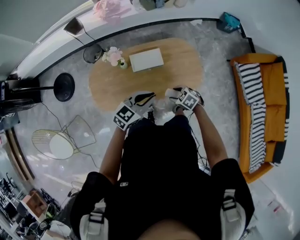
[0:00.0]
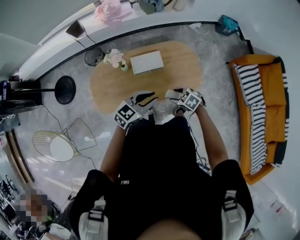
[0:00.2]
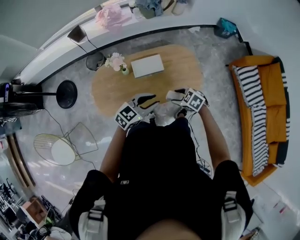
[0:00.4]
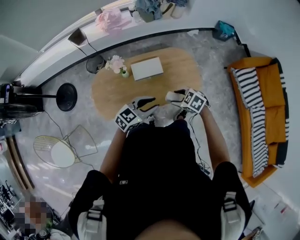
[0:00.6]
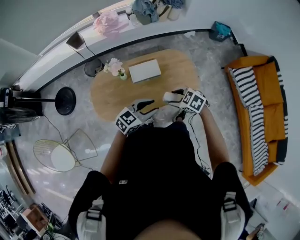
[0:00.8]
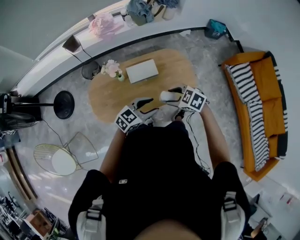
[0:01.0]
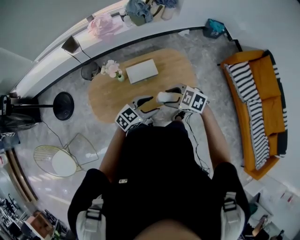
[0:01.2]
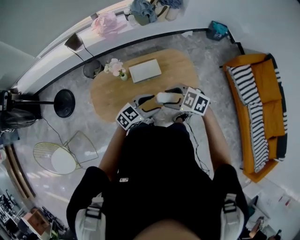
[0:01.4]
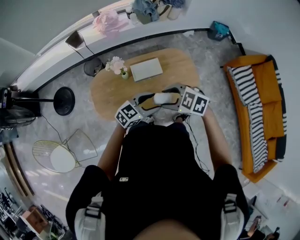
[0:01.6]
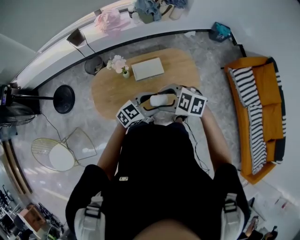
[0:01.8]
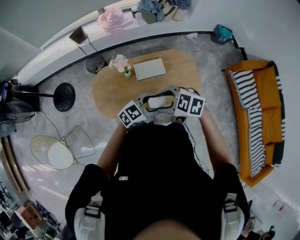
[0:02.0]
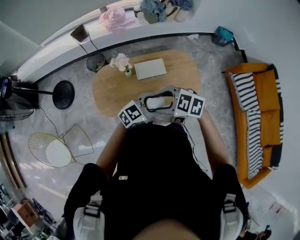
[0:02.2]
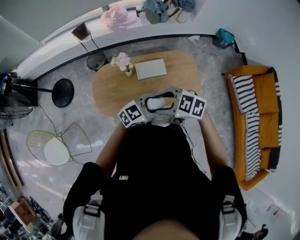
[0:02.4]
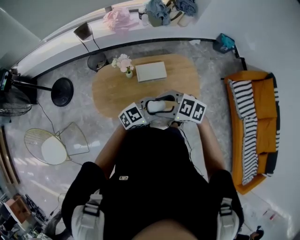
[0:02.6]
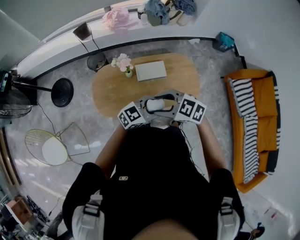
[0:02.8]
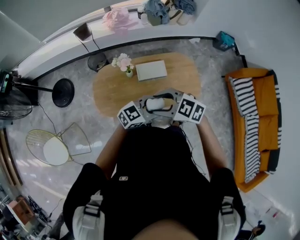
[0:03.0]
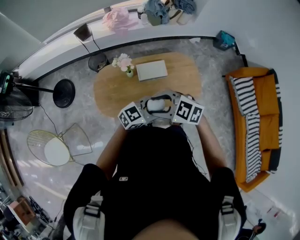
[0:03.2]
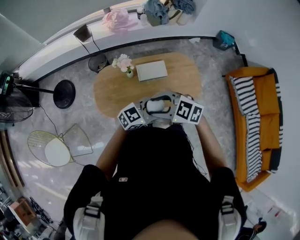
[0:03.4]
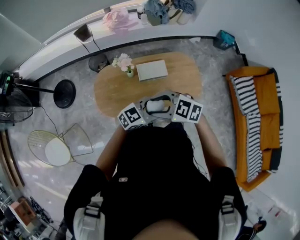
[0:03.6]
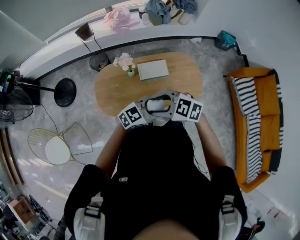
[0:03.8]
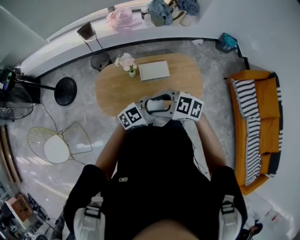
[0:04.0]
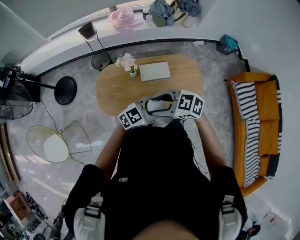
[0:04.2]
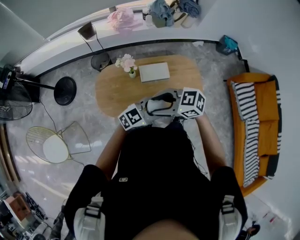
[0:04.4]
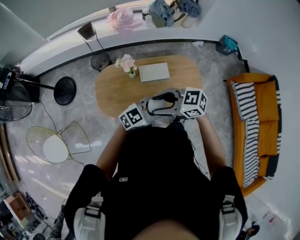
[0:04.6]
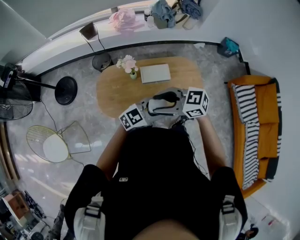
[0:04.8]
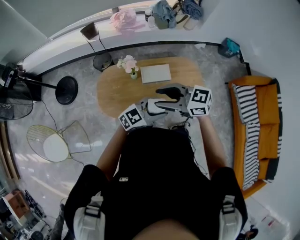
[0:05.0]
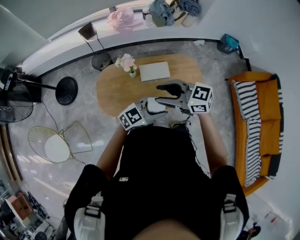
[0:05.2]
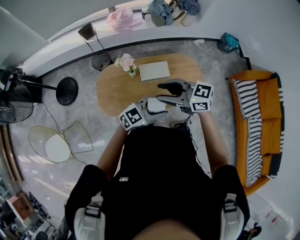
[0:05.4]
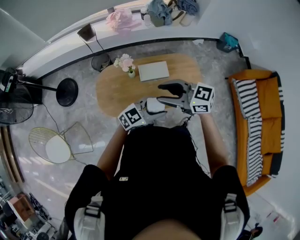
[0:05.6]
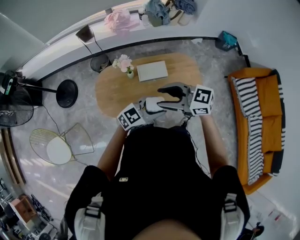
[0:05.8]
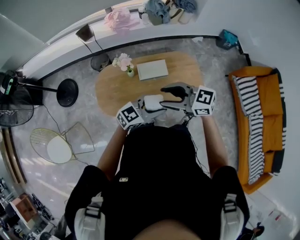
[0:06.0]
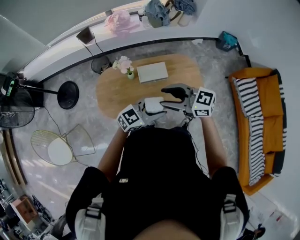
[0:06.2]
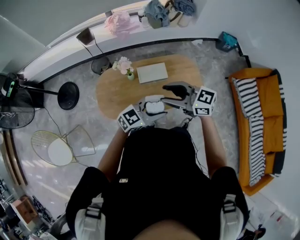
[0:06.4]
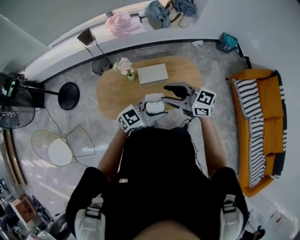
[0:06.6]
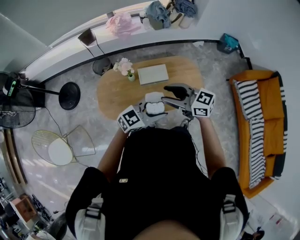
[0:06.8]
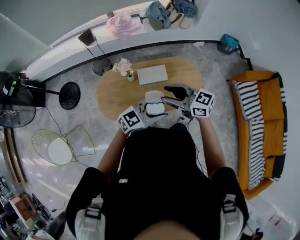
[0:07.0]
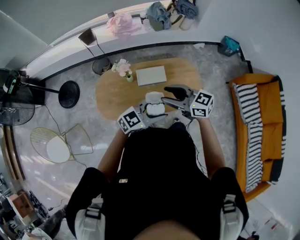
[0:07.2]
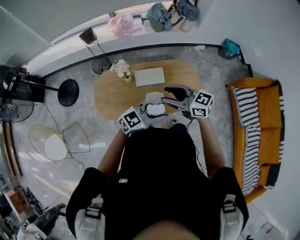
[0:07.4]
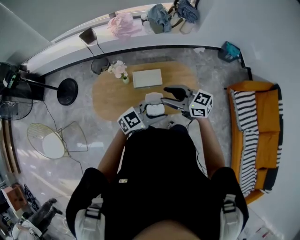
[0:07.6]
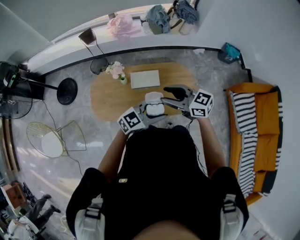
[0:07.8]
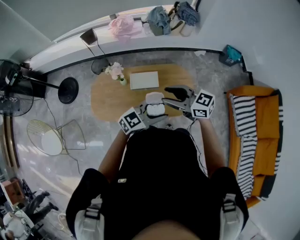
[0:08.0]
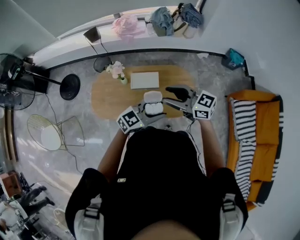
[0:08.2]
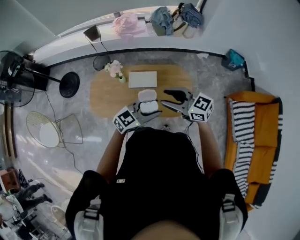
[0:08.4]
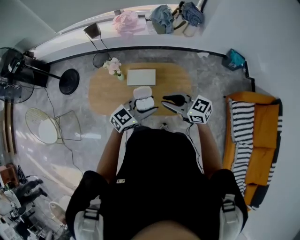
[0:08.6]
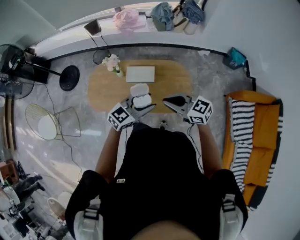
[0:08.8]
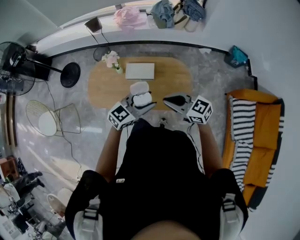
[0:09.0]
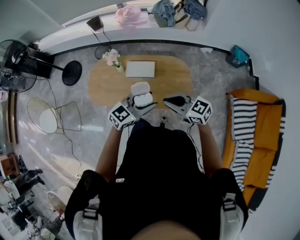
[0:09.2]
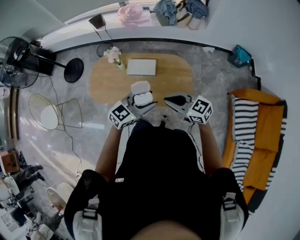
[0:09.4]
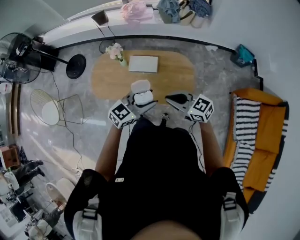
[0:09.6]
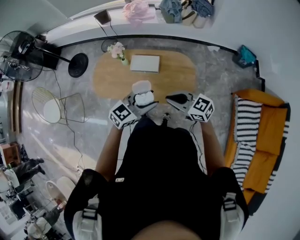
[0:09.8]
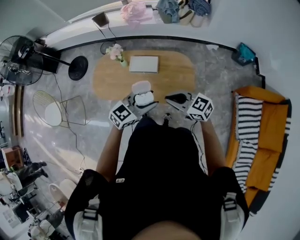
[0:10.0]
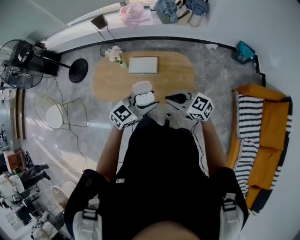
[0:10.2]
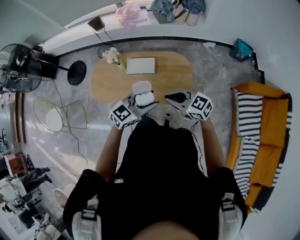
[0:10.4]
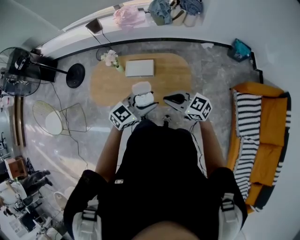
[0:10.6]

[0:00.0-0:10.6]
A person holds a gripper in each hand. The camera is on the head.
0:00.0 to 0:01.6: The left gripper opens, while the right gripper is displaced upward by about 25 cm, and rotates approximately 20 degrees.
0:01.6 to 0:03.0: The right gripper changes place by roughly 10 cm.
0:03.0 to 0:04.6: The right gripper changes its angle by approximately 20 degrees.
0:04.6 to 0:06.0: The right gripper changes place by some 5 cm.
0:06.0 to 0:07.6: The right gripper shifts by roughly 10 cm, while the left gripper shifts by approximately 10 cm.
0:07.6 to 0:09.0: The left gripper shifts by approximately 10 cm, and turns by roughly 20 degrees. Meanwhile the right gripper ends up roughly 15 cm from where it was, and closes its fingers.
0:09.0 to 0:10.6: The right gripper ends up about 5 cm from where it was. Meanwhile the left gripper changes place by about 5 cm.

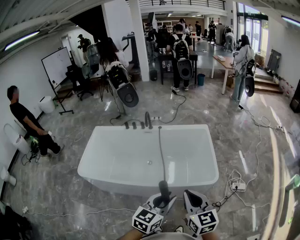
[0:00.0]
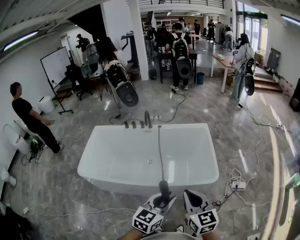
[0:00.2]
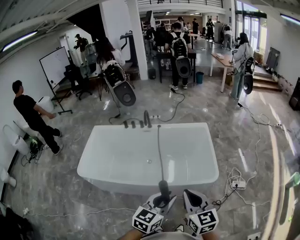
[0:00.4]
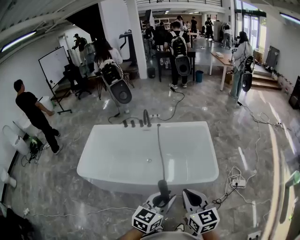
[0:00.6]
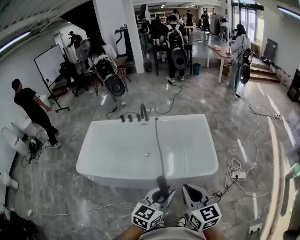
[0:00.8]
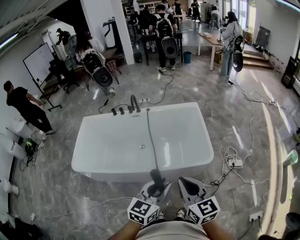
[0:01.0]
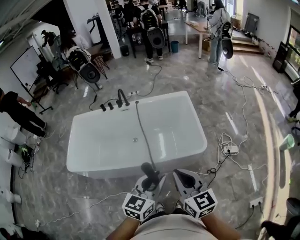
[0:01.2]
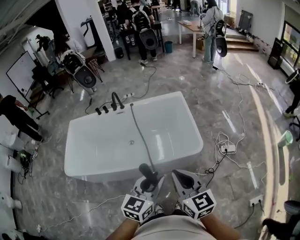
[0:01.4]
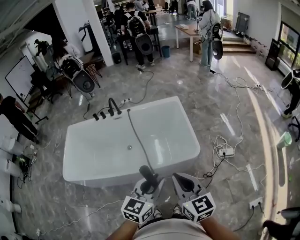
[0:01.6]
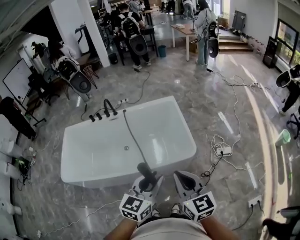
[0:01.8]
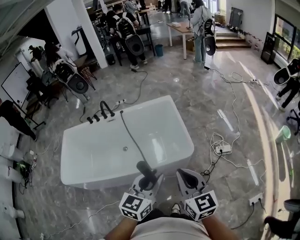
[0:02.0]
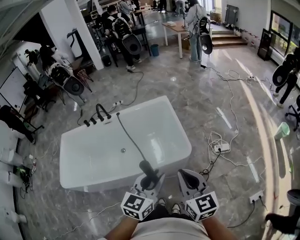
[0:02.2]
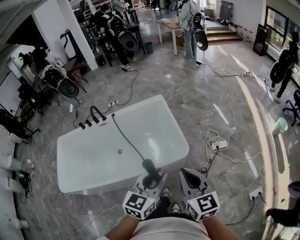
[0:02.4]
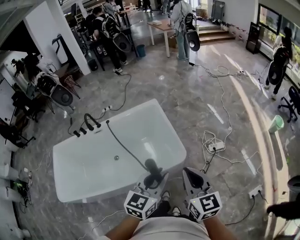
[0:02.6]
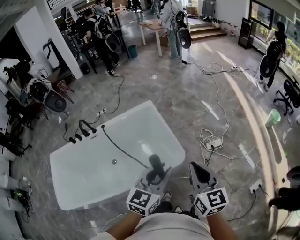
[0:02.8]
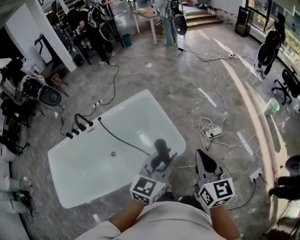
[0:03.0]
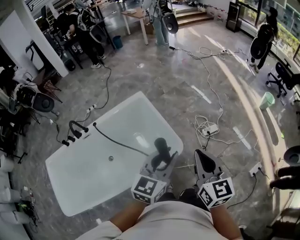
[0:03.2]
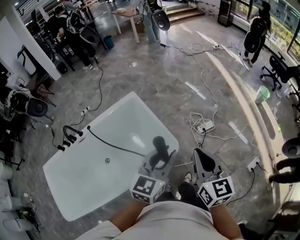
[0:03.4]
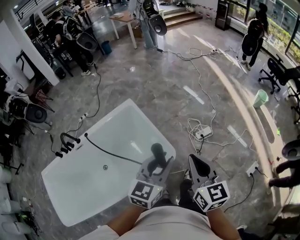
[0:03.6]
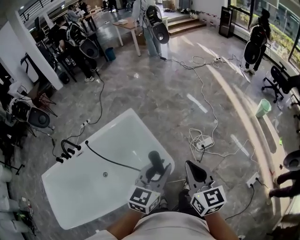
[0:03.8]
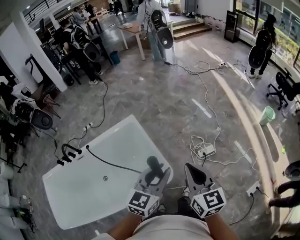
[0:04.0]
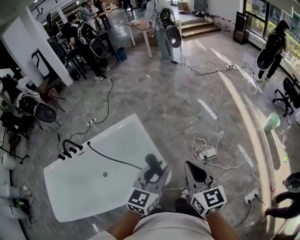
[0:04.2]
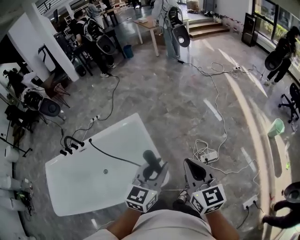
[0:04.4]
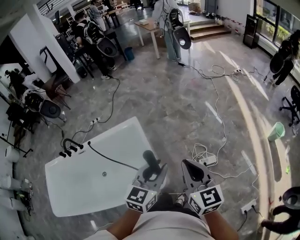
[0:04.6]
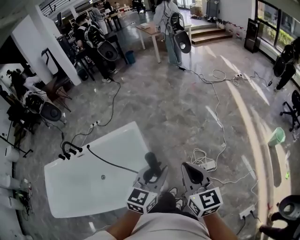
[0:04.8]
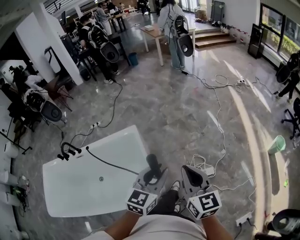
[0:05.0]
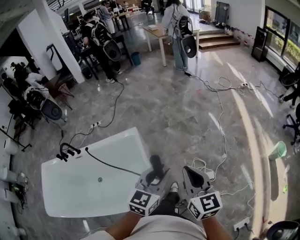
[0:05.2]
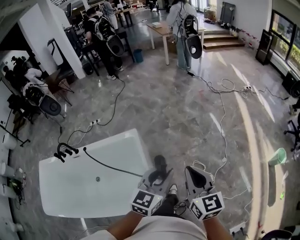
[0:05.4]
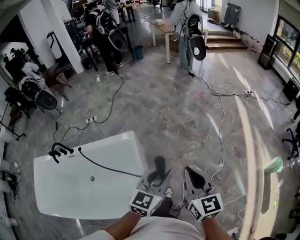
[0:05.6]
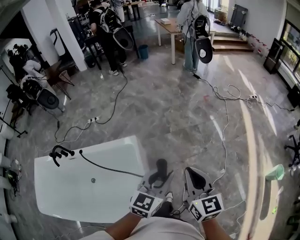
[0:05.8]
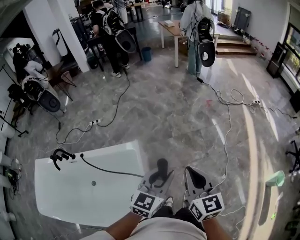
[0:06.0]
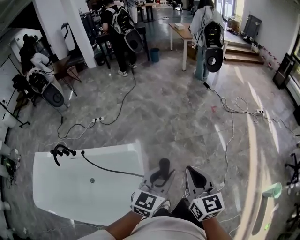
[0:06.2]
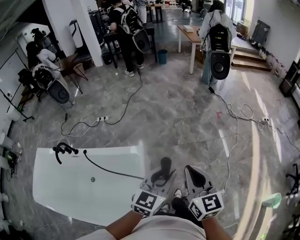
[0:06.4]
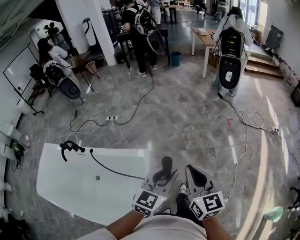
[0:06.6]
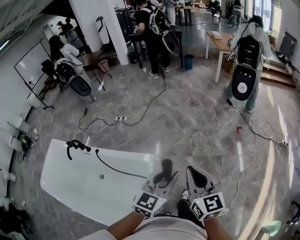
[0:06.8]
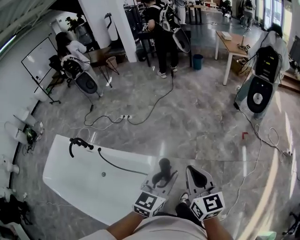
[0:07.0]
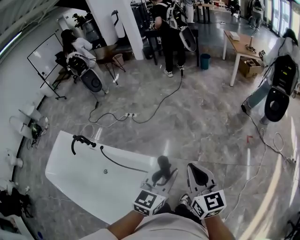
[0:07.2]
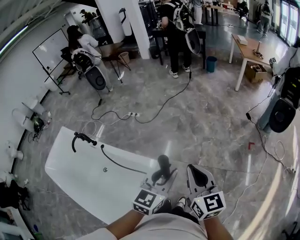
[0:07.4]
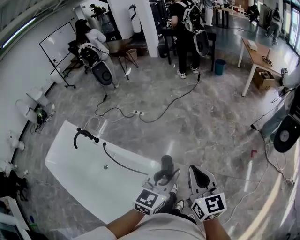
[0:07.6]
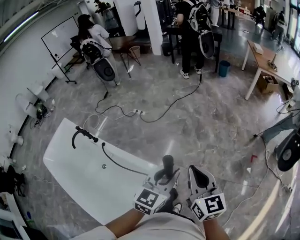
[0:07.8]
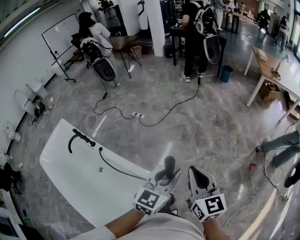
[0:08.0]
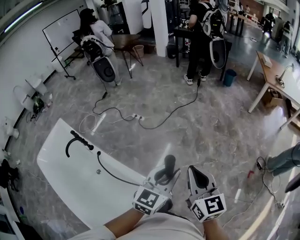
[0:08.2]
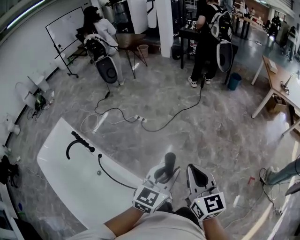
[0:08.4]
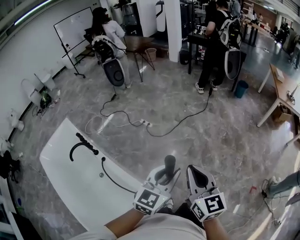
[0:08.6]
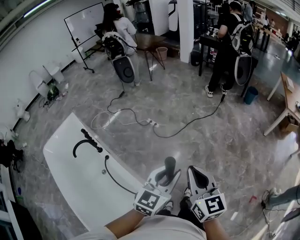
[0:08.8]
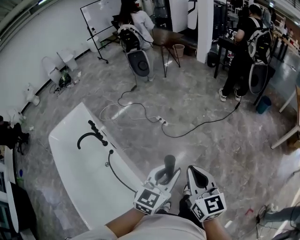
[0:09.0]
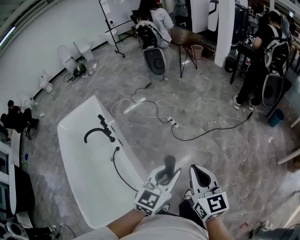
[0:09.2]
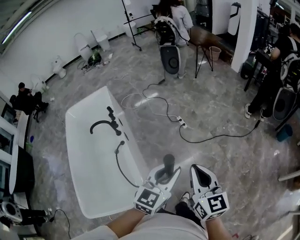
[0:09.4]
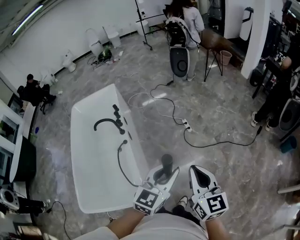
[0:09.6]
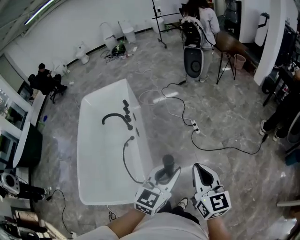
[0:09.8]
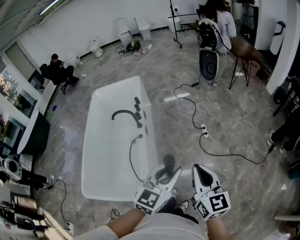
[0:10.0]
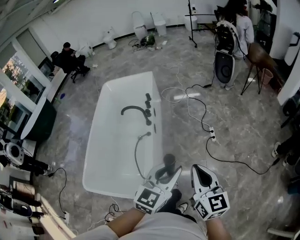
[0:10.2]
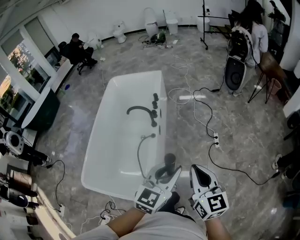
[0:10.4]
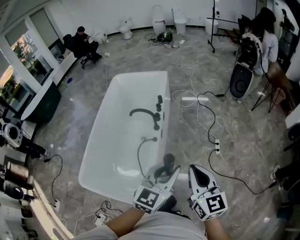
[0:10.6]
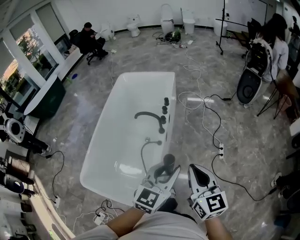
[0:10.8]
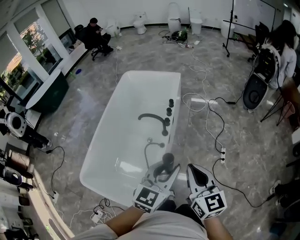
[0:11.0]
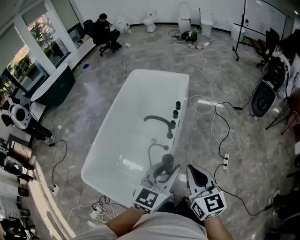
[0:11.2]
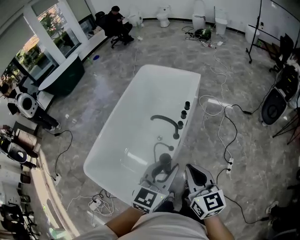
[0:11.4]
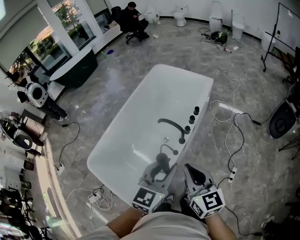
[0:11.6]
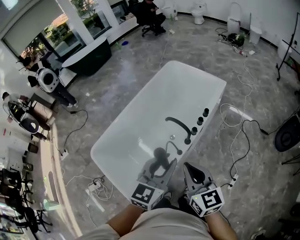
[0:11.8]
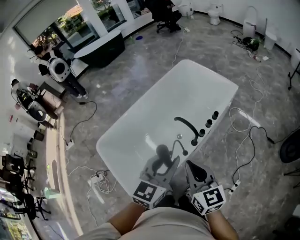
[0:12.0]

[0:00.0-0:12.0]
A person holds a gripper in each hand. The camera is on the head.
0:00.0 to 0:01.6: Both grippers travel together to the right, approximately 5 cm.
0:01.6 to 0:03.0: The right gripper ends up approximately 20 cm from where it was, and turns by approximately 30 degrees; the left gripper ends up some 20 cm from where it was, and swivels roughly 20 degrees.
0:03.0 to 0:04.4: The right gripper heads forward, covering about 20 cm. Meanwhile the left gripper heads forward and to the right, covering some 20 cm.
0:04.4 to 0:06.0: The grippers both shift forward by roughly 30 cm.
0:06.0 to 0:07.6: The left gripper ends up about 30 cm from where it was, and changes its angle by about 30 degrees. The right gripper moves roughly 30 cm, and rotates some 30 degrees.
0:07.6 to 0:09.0: The grippers both shift forward by some 35 cm. The left gripper changes its angle by some 20 degrees; the right gripper turns by some 30 degrees.
0:09.0 to 0:10.4: The right gripper moves roughly 20 cm, and rotates roughly 50 degrees. Meanwhile the left gripper ends up some 20 cm from where it was, and swivels about 50 degrees.
0:10.4 to 0:12.0: The right gripper shifts by approximately 30 cm, and swivels roughly 50 degrees, while the left gripper moves approximately 30 cm, and turns by about 40 degrees.

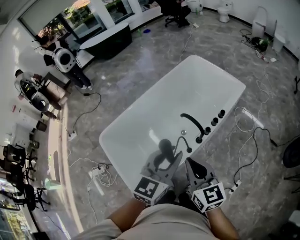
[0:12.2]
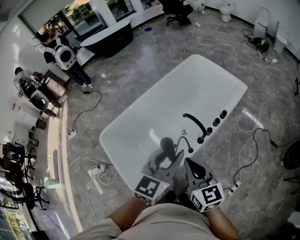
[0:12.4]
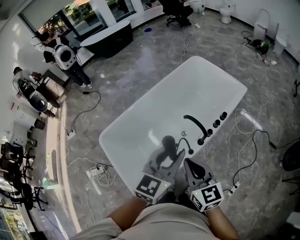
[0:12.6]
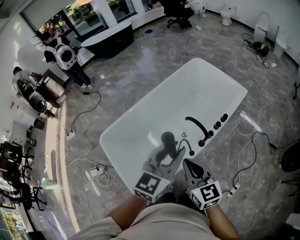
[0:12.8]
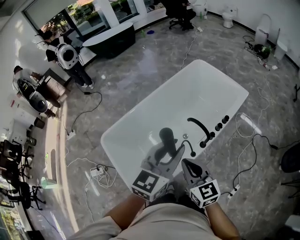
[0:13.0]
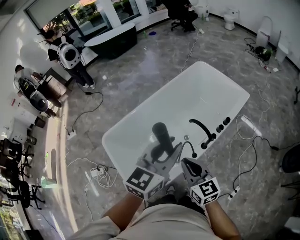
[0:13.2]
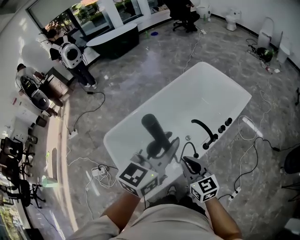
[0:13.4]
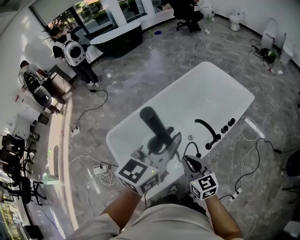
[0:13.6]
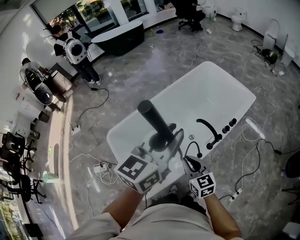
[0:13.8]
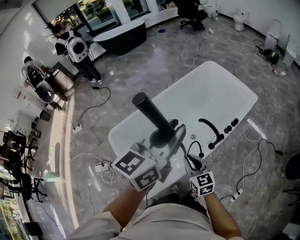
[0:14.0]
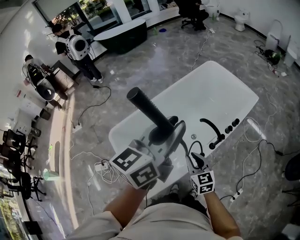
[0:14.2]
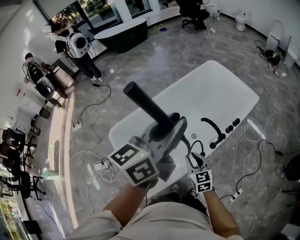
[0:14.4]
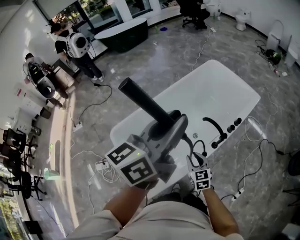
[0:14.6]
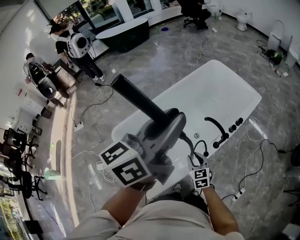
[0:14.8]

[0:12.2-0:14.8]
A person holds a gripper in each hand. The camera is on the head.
0:12.2 to 0:13.4: The right gripper goes roughly 10 cm to the left and downward; the left gripper shifts some 10 cm to the left and upward.
0:13.4 to 0:14.8: The right gripper shifts about 15 cm downward, and rotates about 20 degrees. Meanwhile the left gripper travels upward and to the left by about 10 cm, and swivels about 30 degrees.
